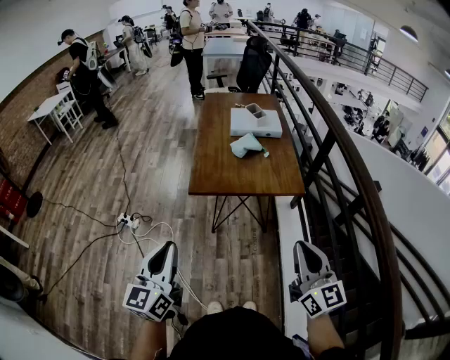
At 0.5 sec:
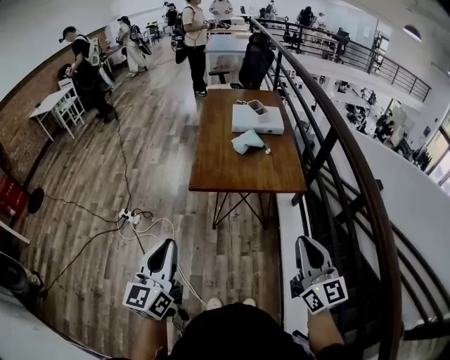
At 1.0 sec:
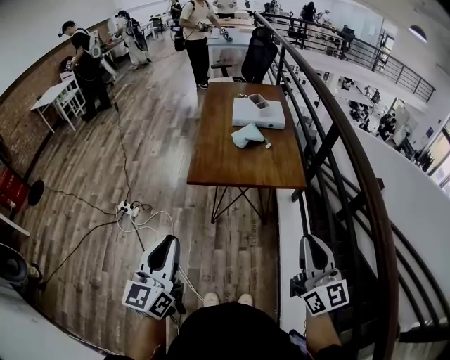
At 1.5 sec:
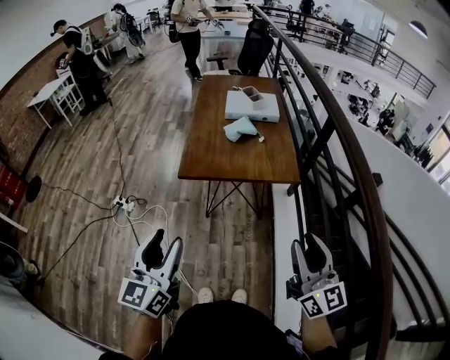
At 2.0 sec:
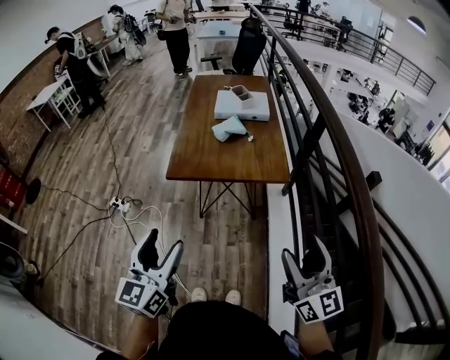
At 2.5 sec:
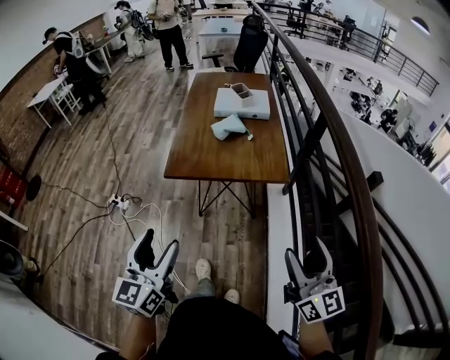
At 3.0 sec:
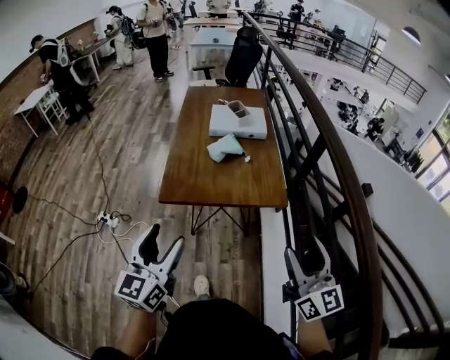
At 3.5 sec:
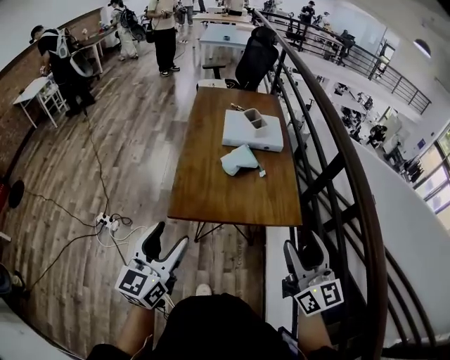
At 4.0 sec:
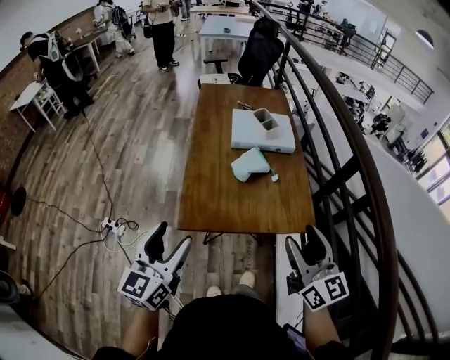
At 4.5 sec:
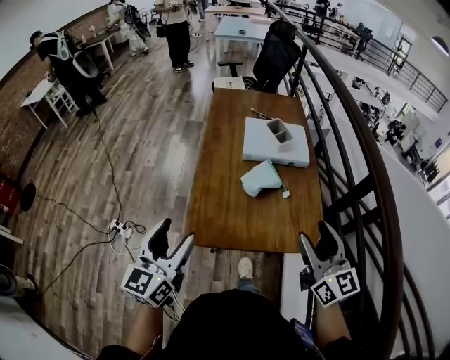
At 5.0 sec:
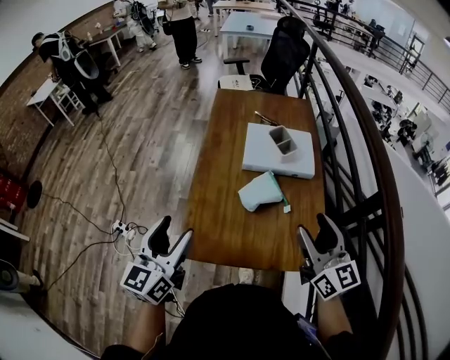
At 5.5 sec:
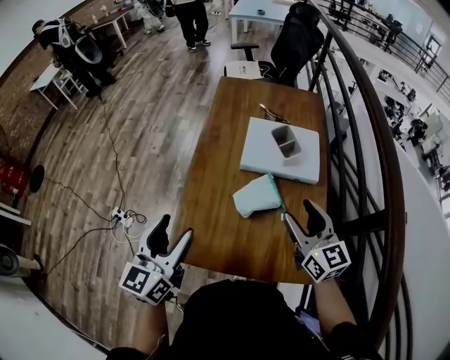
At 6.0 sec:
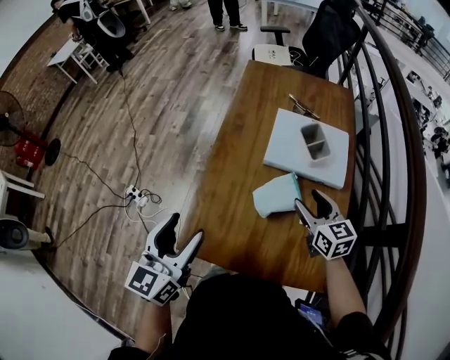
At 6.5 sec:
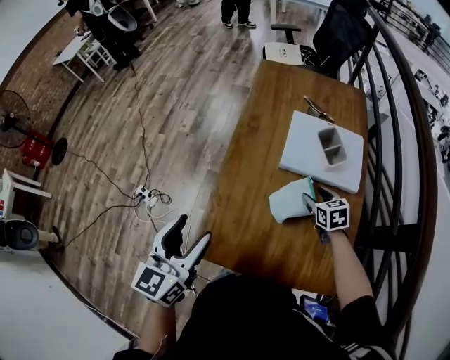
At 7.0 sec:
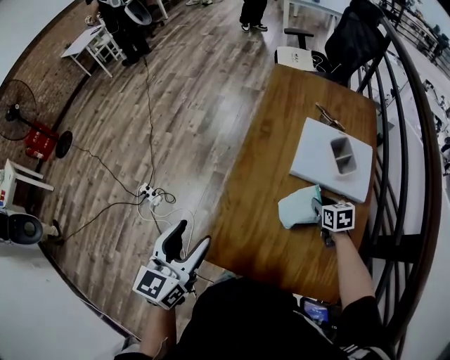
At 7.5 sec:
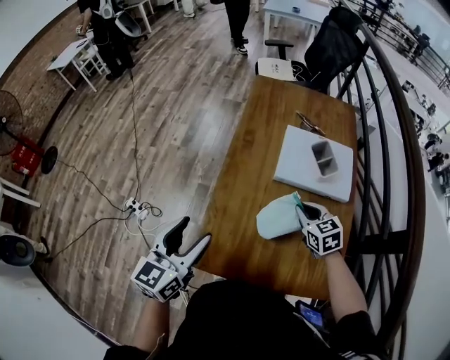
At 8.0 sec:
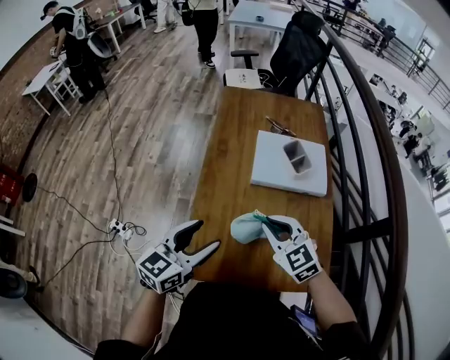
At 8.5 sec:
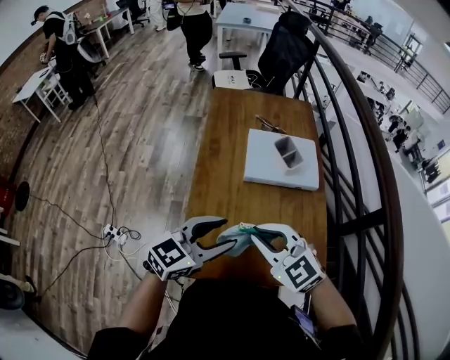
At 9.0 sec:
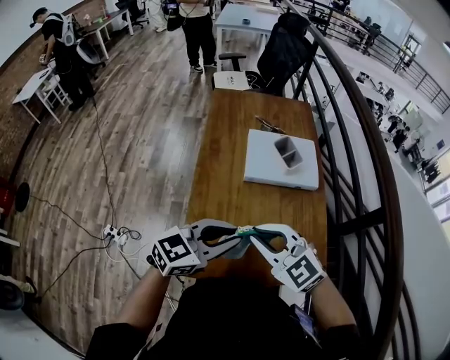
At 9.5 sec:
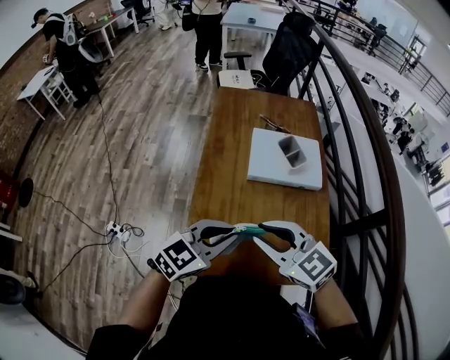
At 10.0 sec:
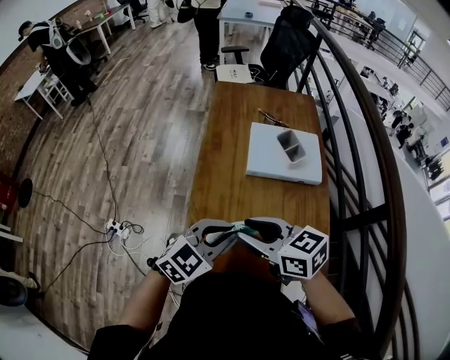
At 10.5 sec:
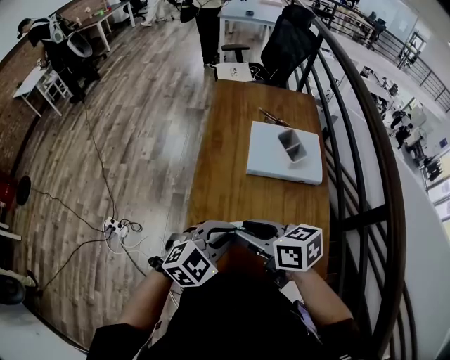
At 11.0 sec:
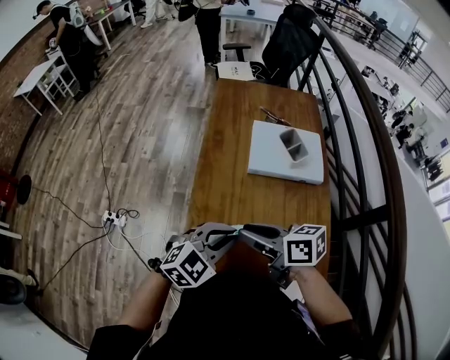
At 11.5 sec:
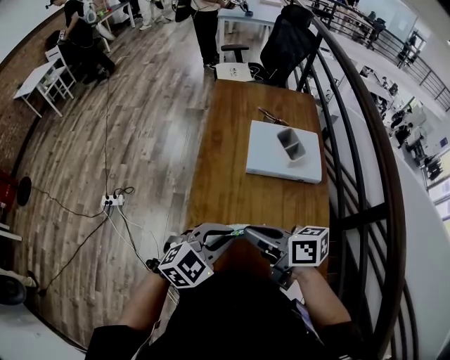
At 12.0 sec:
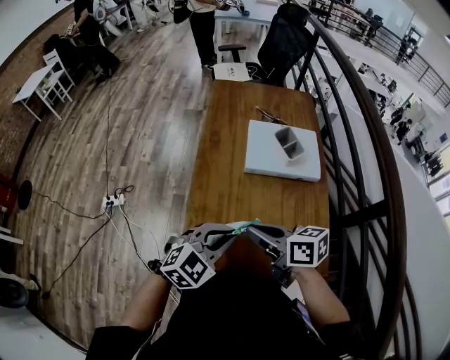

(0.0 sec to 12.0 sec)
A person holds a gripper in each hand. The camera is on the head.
0.0 sec - 2.0 sec: The grippers both shift to the right by some 10 cm. The left gripper opens its fingers, while the right gripper opens.
2.0 sec - 4.0 sec: The left gripper travels forward by some 25 cm; the right gripper goes roughly 30 cm forward and to the left.
4.0 sec - 6.0 sec: The right gripper heads forward and downward, covering about 40 cm, and changes its angle by about 30 degrees, while the left gripper is displaced forward by about 20 cm.
6.0 sec - 8.0 sec: The left gripper goes to the left and returns, roughly 5 cm each way, and rotates about 30 degrees. Meanwhile the right gripper is displaced to the left by about 15 cm, moves approximately 15 cm downward and comes back, rotates roughly 30 degrees, and closes.
8.0 sec - 10.0 sec: The left gripper heads to the right, covering approximately 10 cm, swivels about 30 degrees, and closes up, while the right gripper shifts approximately 10 cm upward, to the left and backward, rotates some 40 degrees, and opens up.
10.0 sec - 12.0 sec: The right gripper turns by about 20 degrees, and closes.

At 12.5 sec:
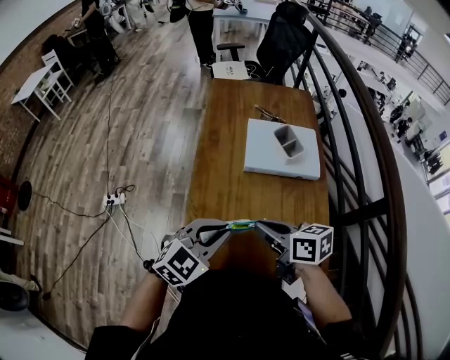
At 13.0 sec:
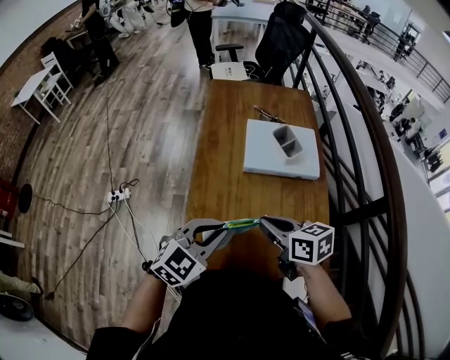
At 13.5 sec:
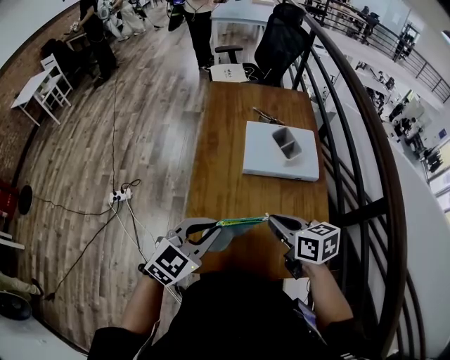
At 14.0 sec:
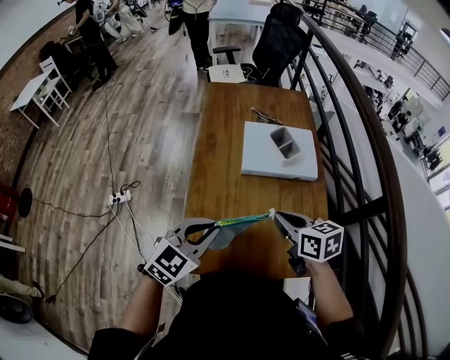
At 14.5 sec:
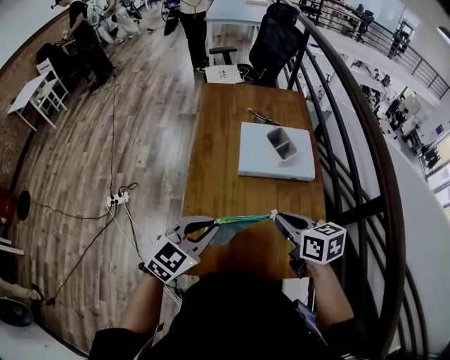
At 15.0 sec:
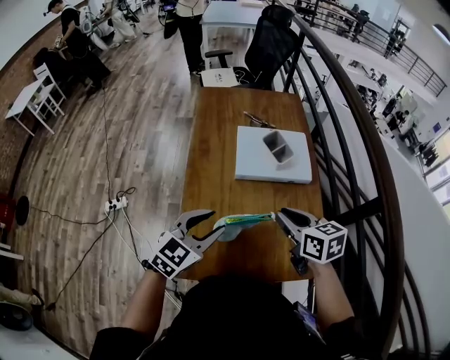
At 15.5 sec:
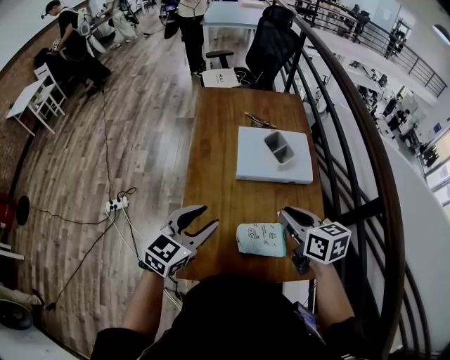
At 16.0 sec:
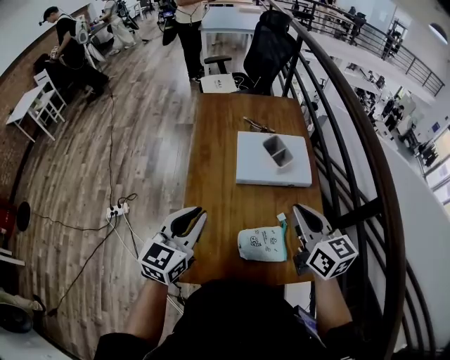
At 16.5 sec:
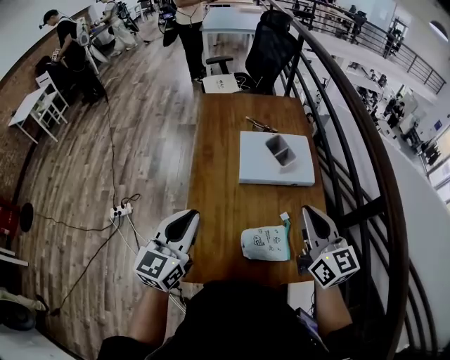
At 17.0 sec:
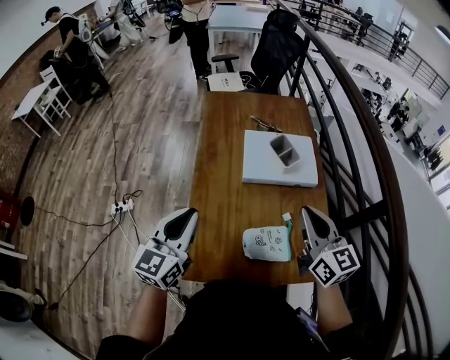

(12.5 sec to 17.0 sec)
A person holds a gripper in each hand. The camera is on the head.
12.5 sec - 14.5 sec: The right gripper shifts roughly 5 cm to the right.
14.5 sec - 17.0 sec: The right gripper goes about 10 cm upward, and rotates about 40 degrees. The left gripper moves to the left and upward, approximately 10 cm, swivels about 30 degrees, and opens, then closes again.

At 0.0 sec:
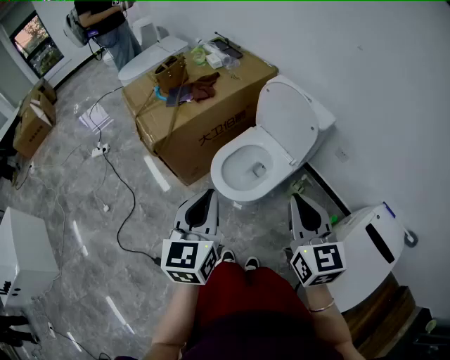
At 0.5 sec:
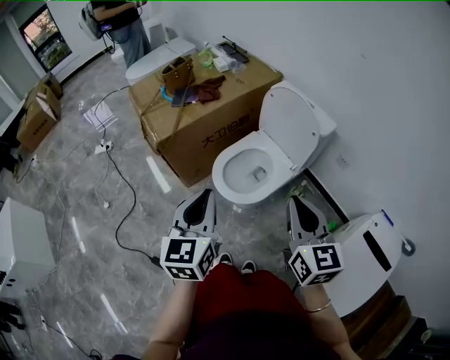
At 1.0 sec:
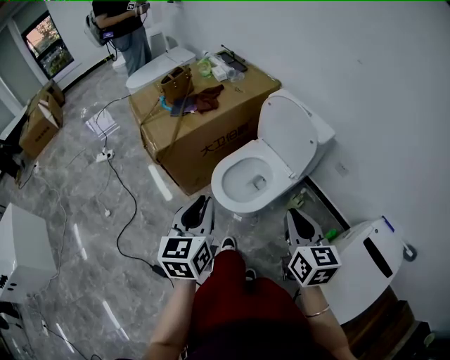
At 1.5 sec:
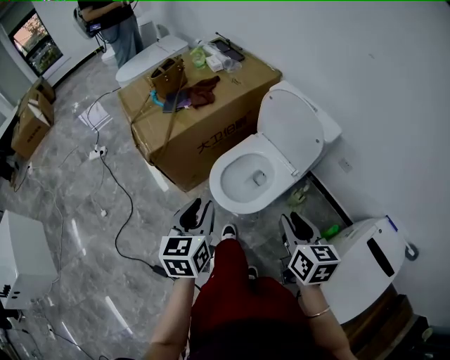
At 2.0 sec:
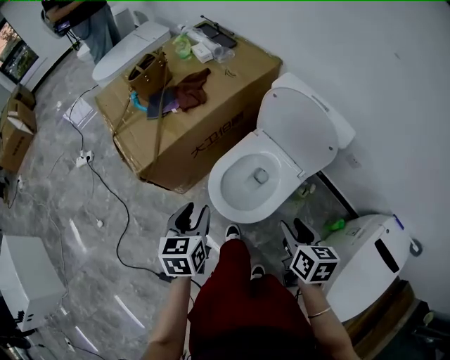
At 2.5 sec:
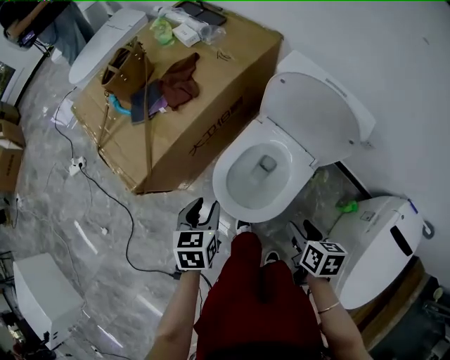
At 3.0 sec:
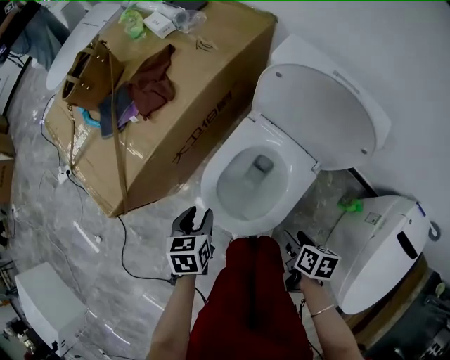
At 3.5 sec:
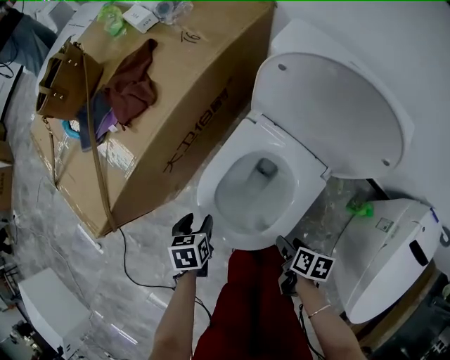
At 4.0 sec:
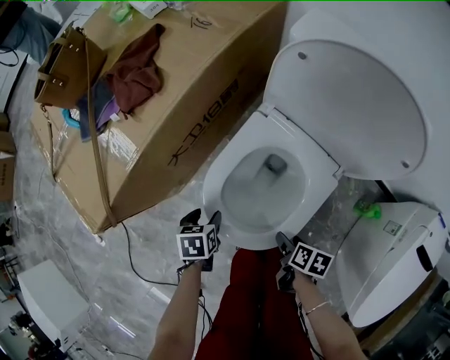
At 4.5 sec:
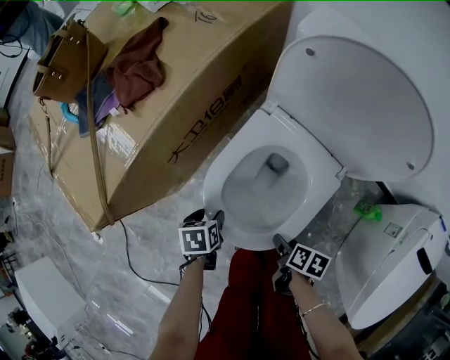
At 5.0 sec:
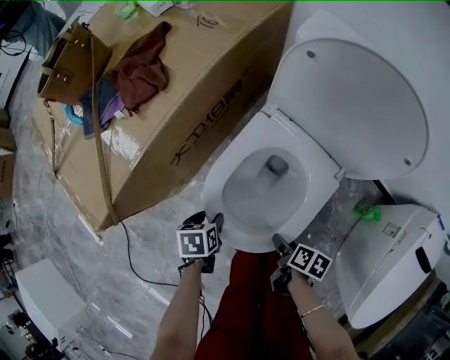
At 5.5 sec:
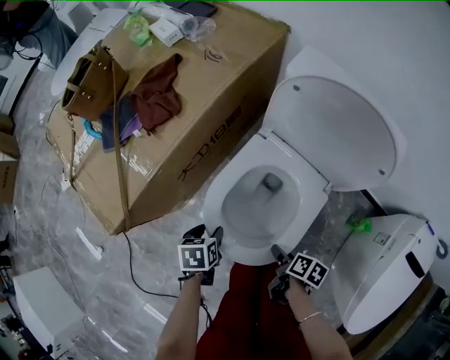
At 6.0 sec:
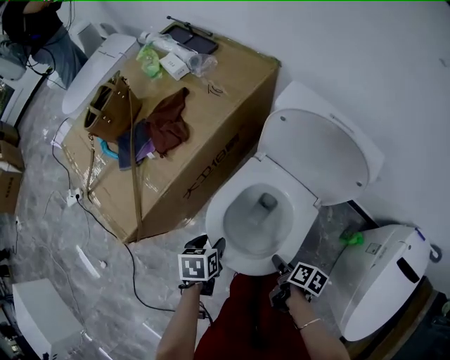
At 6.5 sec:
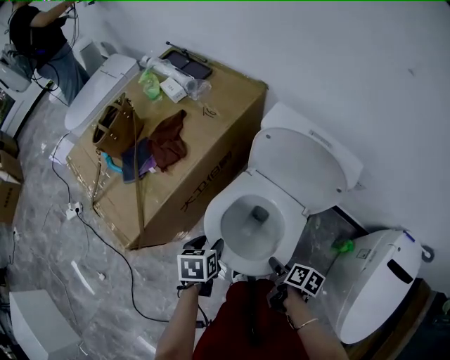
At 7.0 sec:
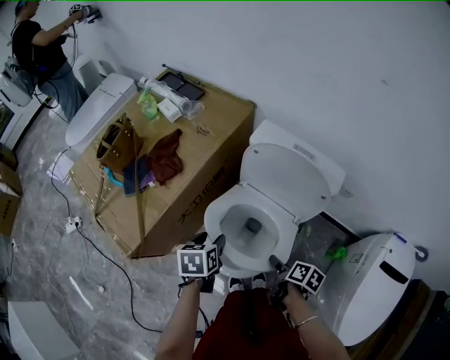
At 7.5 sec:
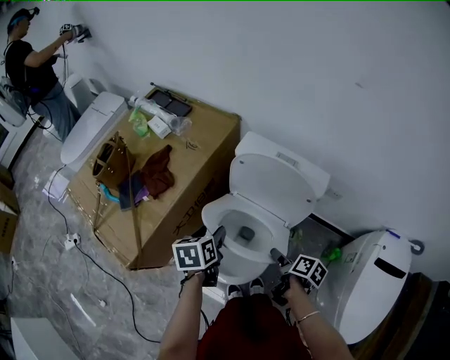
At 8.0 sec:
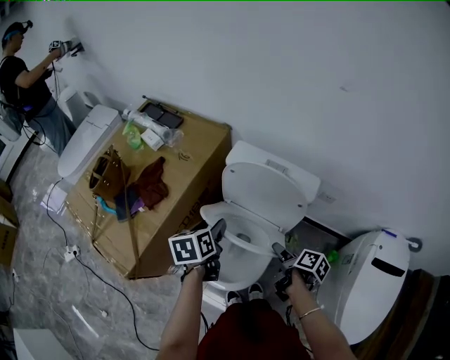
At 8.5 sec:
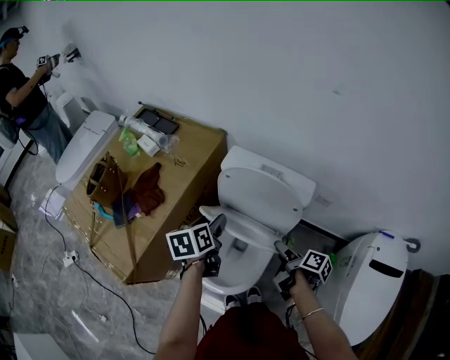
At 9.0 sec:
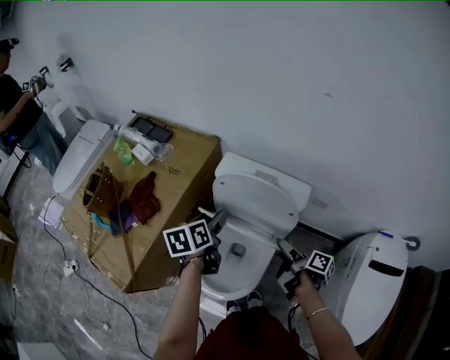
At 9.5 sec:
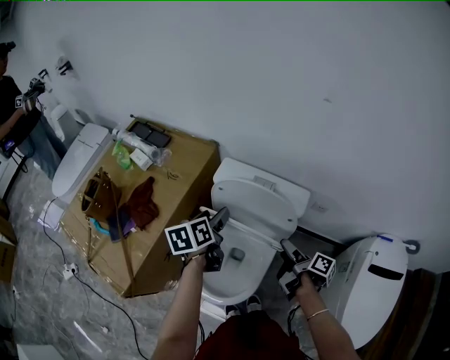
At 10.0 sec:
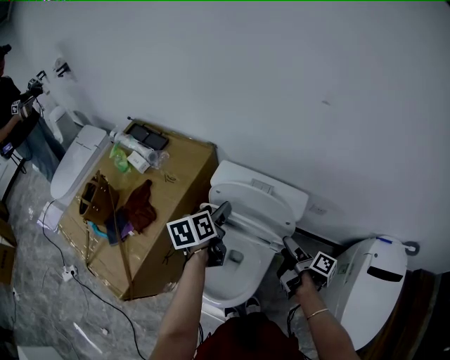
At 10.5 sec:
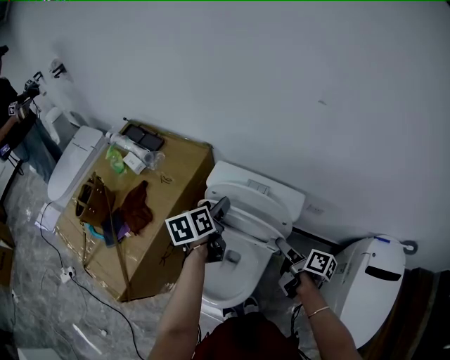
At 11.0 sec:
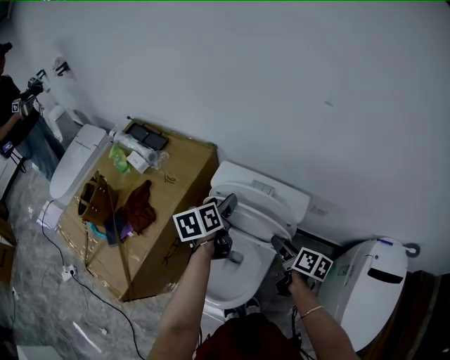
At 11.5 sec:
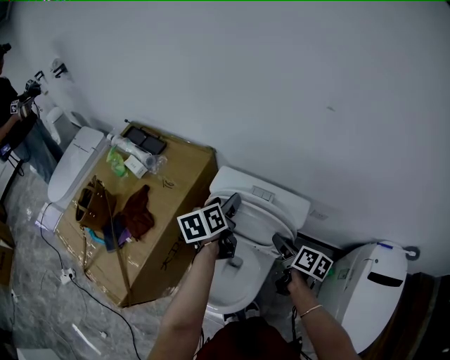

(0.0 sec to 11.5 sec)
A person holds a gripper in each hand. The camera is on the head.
0.0 sec - 2.0 sec: The left gripper travels forward and downward by roughly 25 cm, turns by roughly 20 degrees, and opens its fingers; the right gripper shifts roughly 25 cm downward and forward, changes its angle by about 40 degrees, and opens up.
2.0 sec - 4.0 sec: Both grippers move downward, some 35 cm. The right gripper turns by approximately 40 degrees. Meanwhile the left gripper angles its fingers downward, by roughly 30 degrees.
4.0 sec - 6.0 sec: Both grippers travel together upward, some 15 cm.
6.0 sec - 7.5 sec: The two grippers go roughly 20 cm upward, forward and to the right.
7.5 sec - 9.5 sec: The grippers both shift forward, to the right and upward by about 15 cm. The right gripper turns by roughly 30 degrees.
9.5 sec - 11.5 sec: Both grippers travel together forward, approximately 10 cm. The right gripper turns by about 30 degrees.
